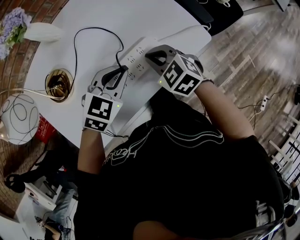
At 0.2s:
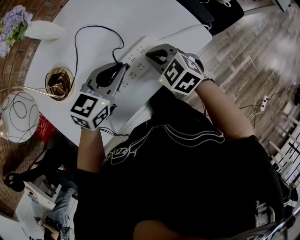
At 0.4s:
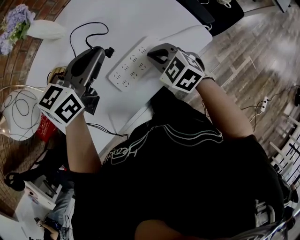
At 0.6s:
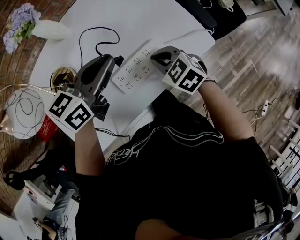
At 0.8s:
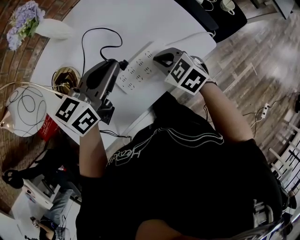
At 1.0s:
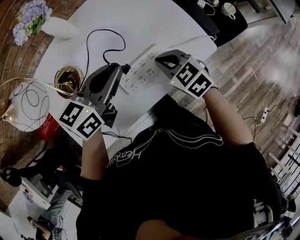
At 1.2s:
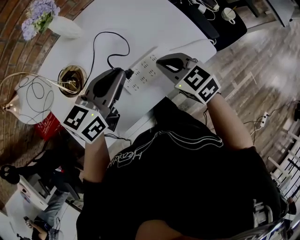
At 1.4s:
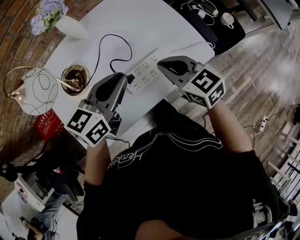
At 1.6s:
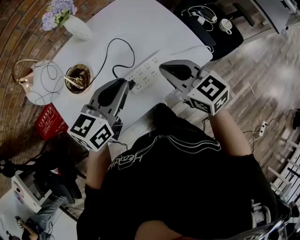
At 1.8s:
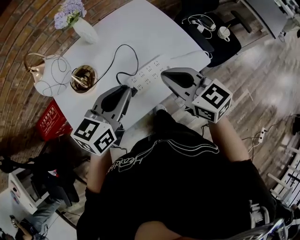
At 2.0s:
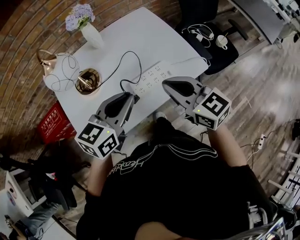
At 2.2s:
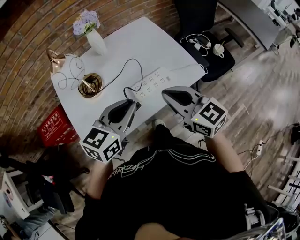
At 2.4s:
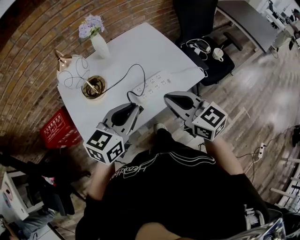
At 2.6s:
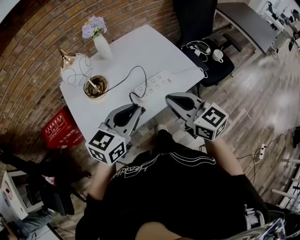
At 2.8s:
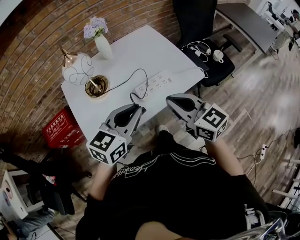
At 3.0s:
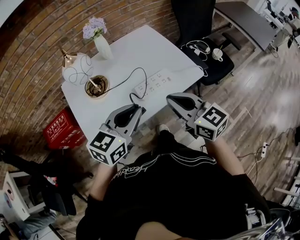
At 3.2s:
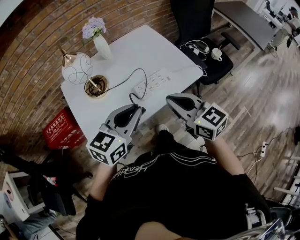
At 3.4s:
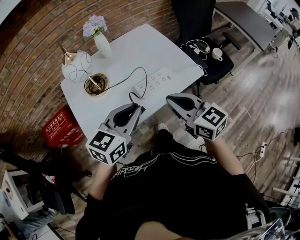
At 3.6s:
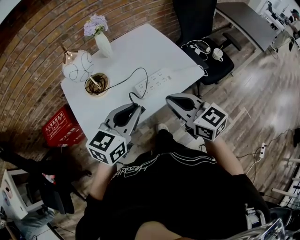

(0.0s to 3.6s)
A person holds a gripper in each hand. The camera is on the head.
0.0s - 1.8s: The right gripper heads upward, covering approximately 15 cm, and changes its angle by about 30 degrees; the left gripper heads upward and backward, covering roughly 15 cm, and turns by approximately 40 degrees.
1.8s - 3.6s: The grippers both shift backward by about 10 cm.

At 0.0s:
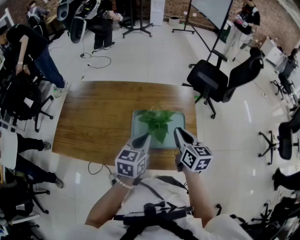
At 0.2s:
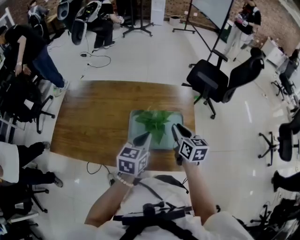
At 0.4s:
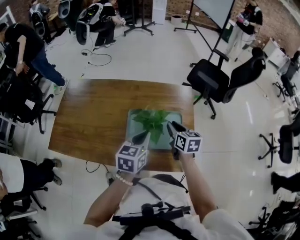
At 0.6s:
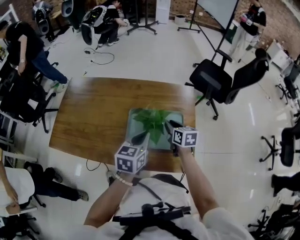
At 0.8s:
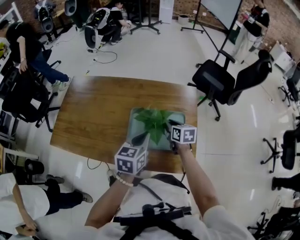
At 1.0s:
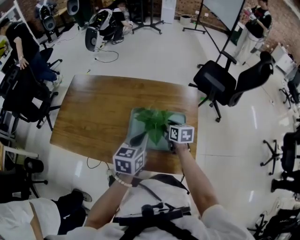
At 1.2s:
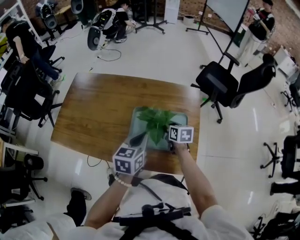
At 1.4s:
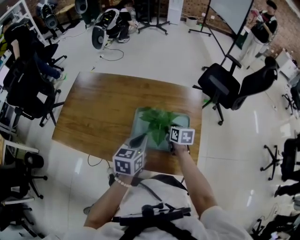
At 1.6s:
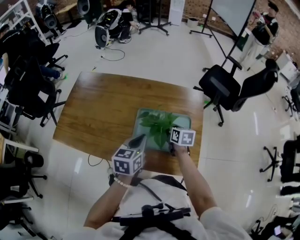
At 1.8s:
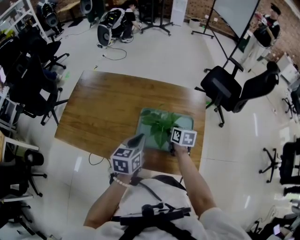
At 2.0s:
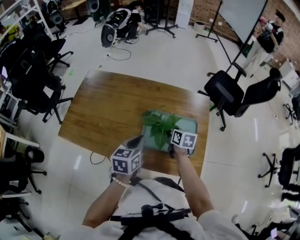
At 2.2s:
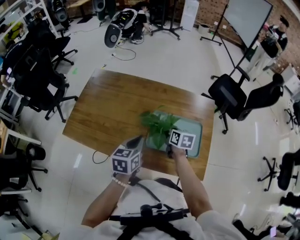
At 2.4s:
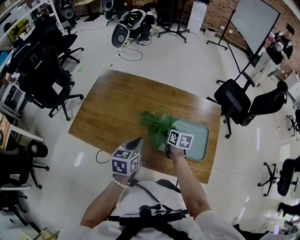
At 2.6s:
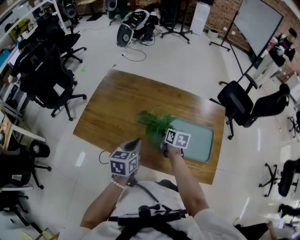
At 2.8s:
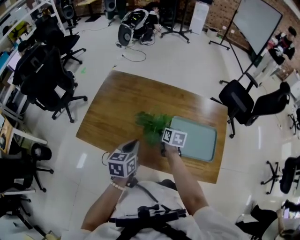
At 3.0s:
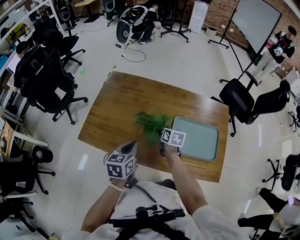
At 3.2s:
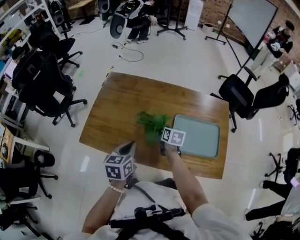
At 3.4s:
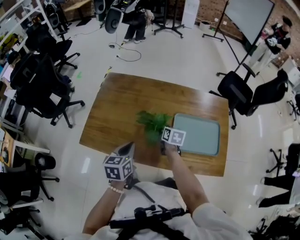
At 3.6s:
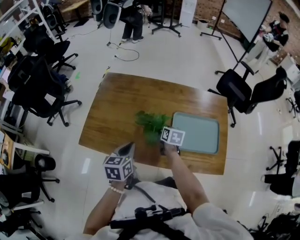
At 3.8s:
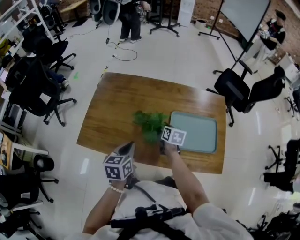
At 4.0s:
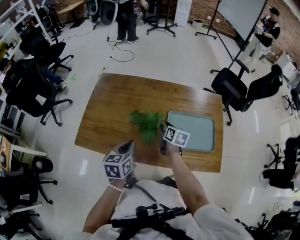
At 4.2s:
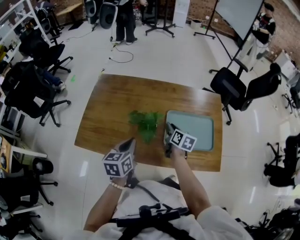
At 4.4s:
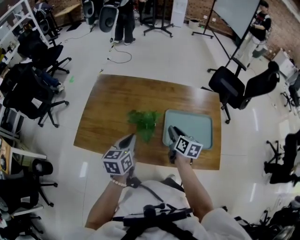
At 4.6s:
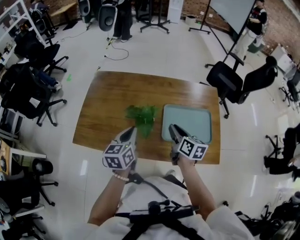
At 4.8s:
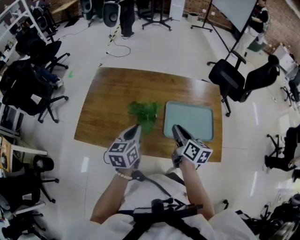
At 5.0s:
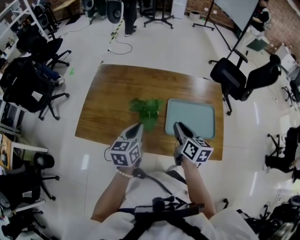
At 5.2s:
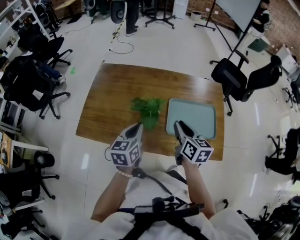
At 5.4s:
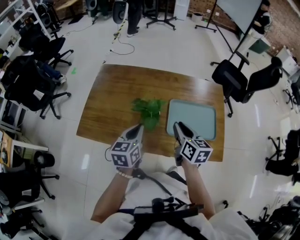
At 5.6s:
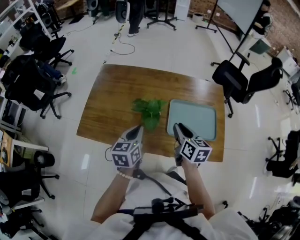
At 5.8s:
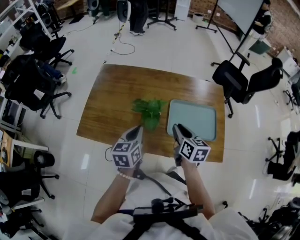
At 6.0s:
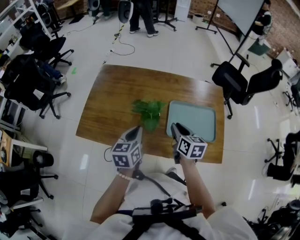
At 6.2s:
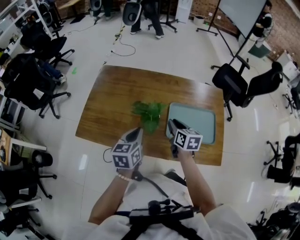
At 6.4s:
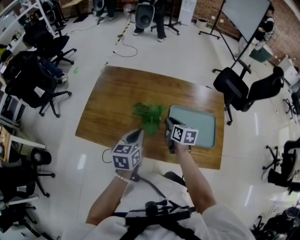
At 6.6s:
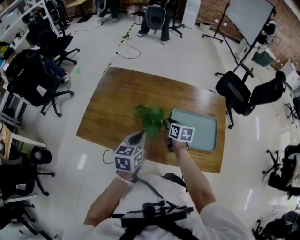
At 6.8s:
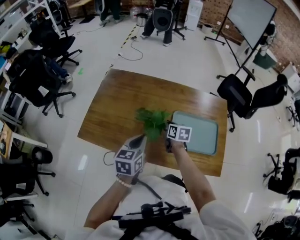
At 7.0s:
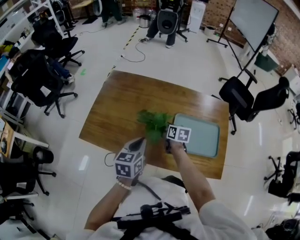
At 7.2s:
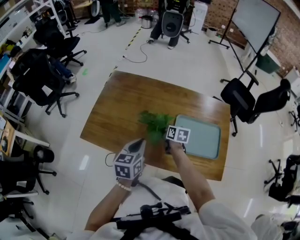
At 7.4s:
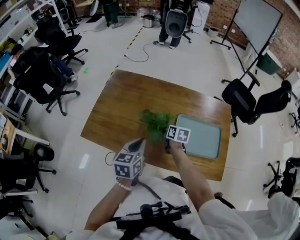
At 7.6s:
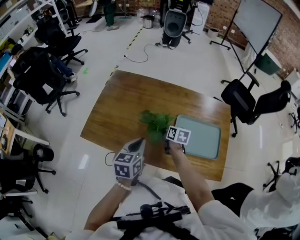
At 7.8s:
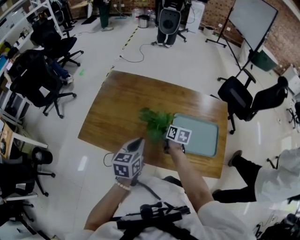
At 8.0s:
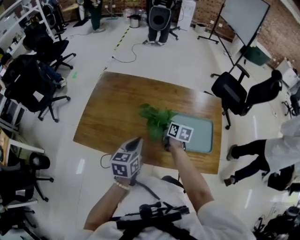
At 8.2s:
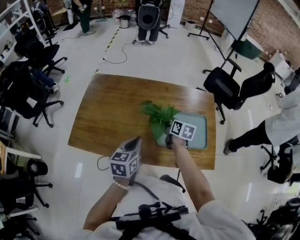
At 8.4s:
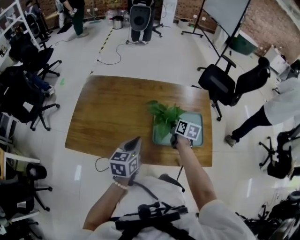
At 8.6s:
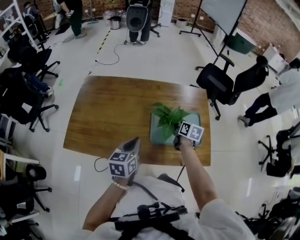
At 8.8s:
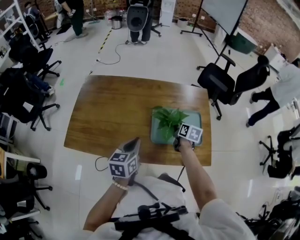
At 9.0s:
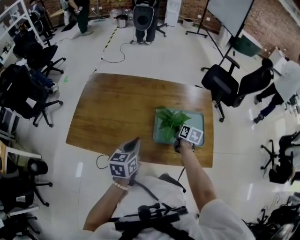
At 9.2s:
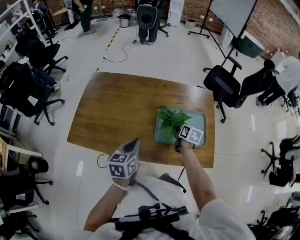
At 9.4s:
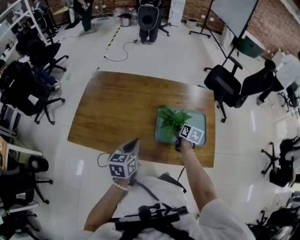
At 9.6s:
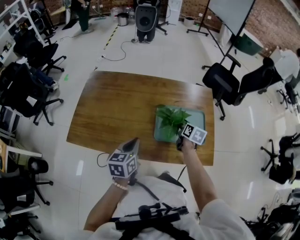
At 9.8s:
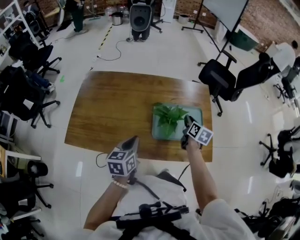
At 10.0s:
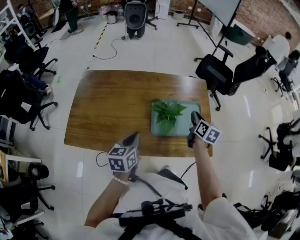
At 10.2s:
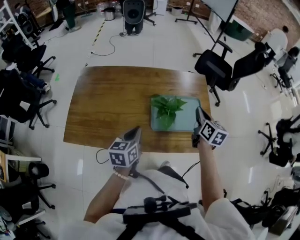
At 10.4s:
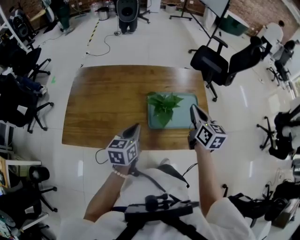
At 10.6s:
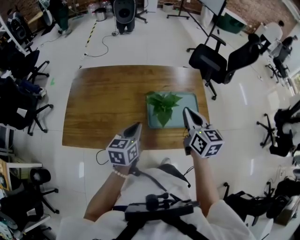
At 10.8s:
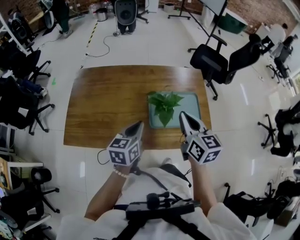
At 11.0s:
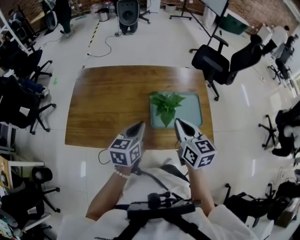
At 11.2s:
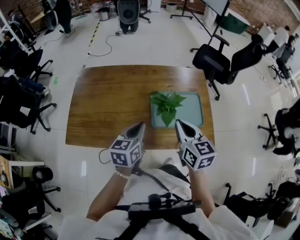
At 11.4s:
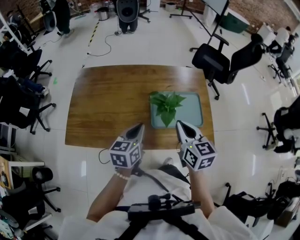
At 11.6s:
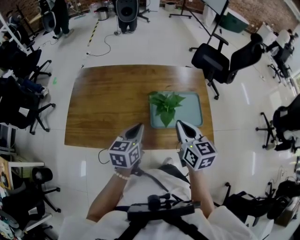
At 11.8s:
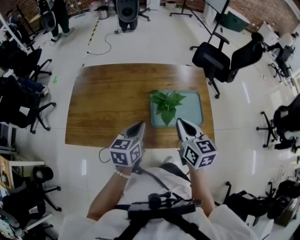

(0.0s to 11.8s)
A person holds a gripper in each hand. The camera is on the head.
0.0s - 1.4s: The right gripper goes approximately 20 cm downward and forward, and turns by approximately 20 degrees.
1.4s - 3.0s: Both grippers travel together to the left, about 25 cm.
3.0s - 4.4s: The right gripper heads to the right, upward and backward, covering roughly 15 cm, and opens up.
6.0s - 7.4s: The right gripper heads downward, forward and to the left, covering about 15 cm.
7.4s - 8.8s: The left gripper travels to the right by about 10 cm, while the right gripper goes approximately 20 cm to the right.
8.8s - 10.4s: The right gripper travels upward by approximately 20 cm, and rotates some 30 degrees.
10.4s - 11.8s: The right gripper goes approximately 10 cm to the left and backward.

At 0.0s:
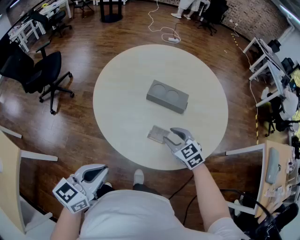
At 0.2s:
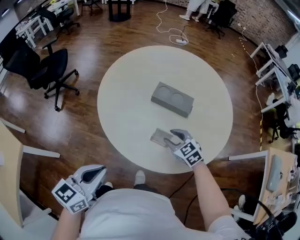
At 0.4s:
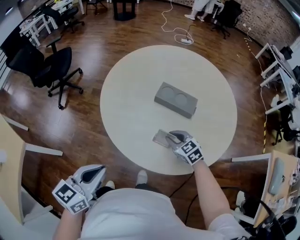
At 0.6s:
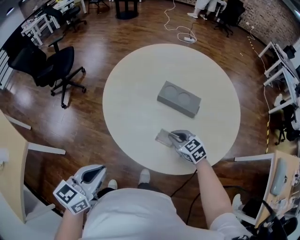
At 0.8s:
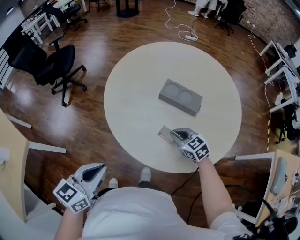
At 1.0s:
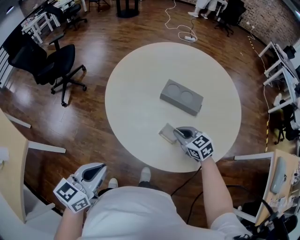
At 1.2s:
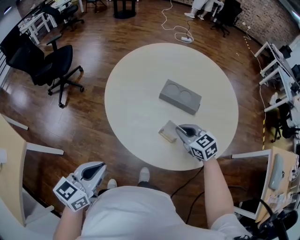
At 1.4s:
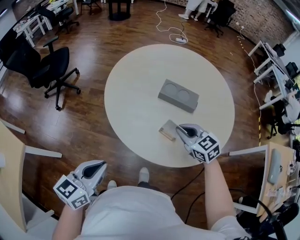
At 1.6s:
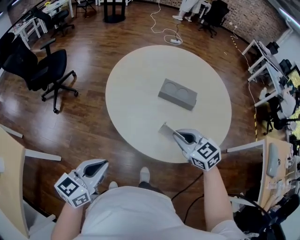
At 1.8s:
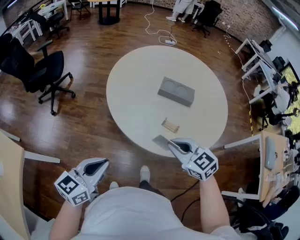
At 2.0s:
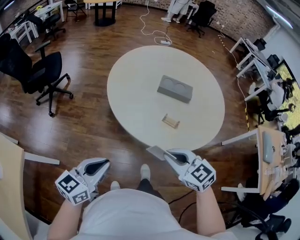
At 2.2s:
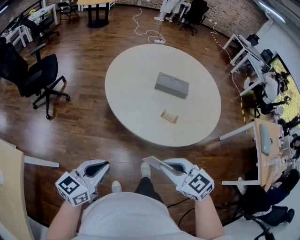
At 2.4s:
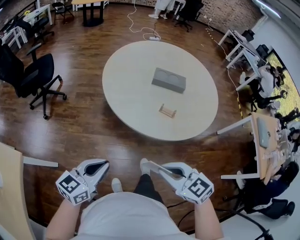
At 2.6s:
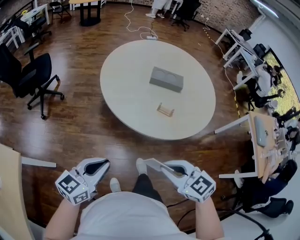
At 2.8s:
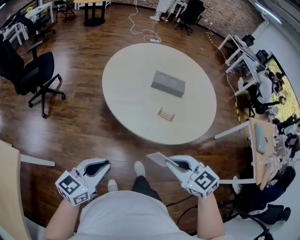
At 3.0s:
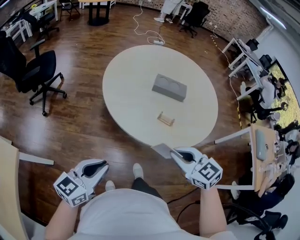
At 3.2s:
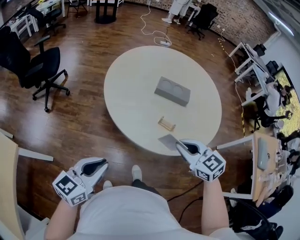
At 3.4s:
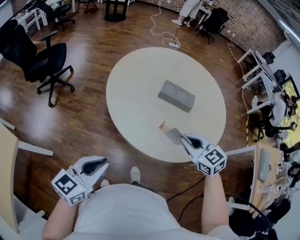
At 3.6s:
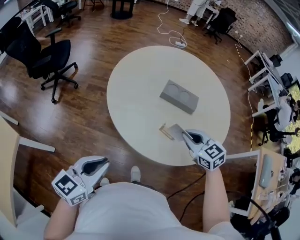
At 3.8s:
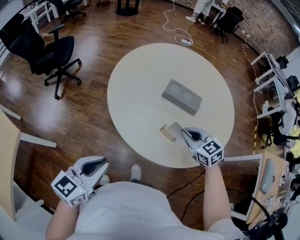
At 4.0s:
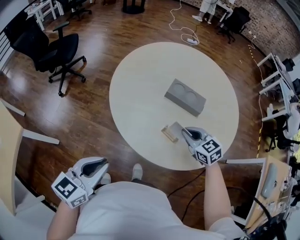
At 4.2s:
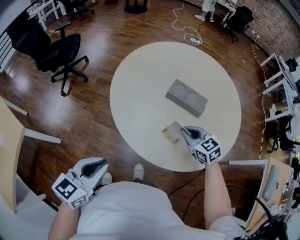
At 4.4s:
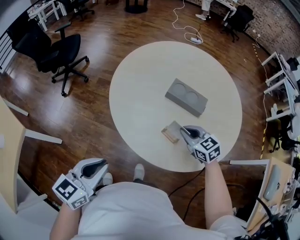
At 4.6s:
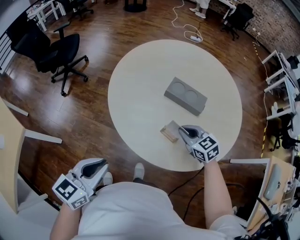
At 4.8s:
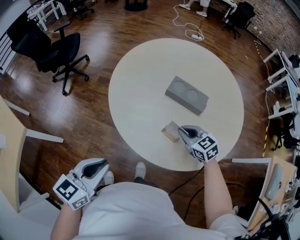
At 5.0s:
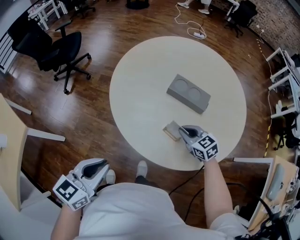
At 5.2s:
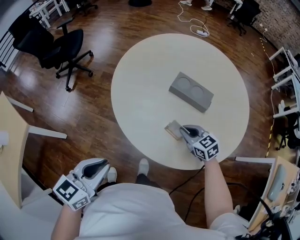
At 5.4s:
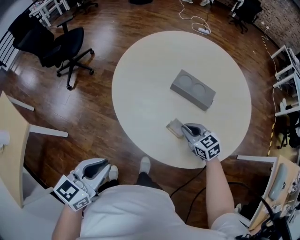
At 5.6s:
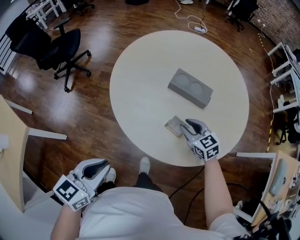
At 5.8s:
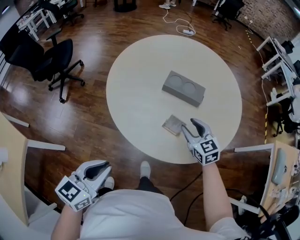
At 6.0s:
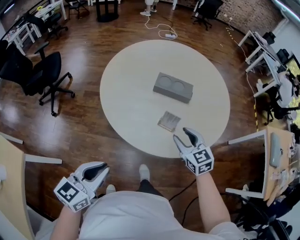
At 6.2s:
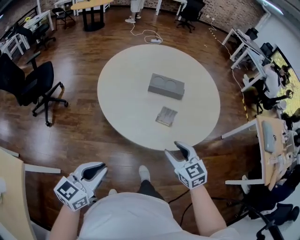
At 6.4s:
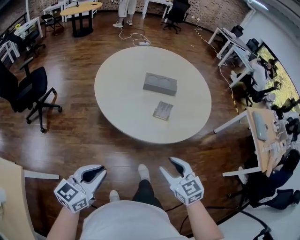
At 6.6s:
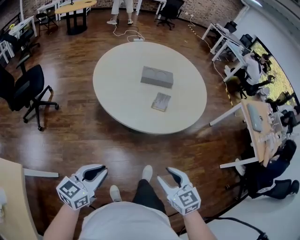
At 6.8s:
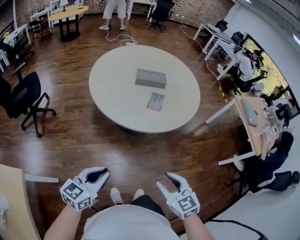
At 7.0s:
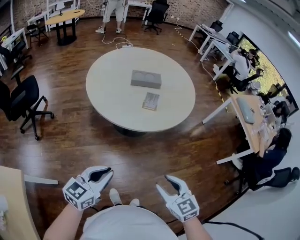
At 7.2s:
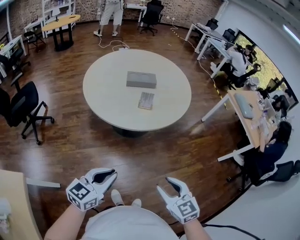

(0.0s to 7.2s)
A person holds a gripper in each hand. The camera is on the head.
0.0s - 1.4s: The left gripper heads to the left, covering approximately 5 cm. The right gripper goes about 5 cm upward, and closes up.
1.4s - 2.8s: The right gripper travels backward and to the left by some 30 cm; the left gripper moves backward and to the left, about 10 cm.
2.8s - 4.4s: The left gripper moves to the right and forward, some 15 cm, and turns by about 20 degrees, while the right gripper shifts some 35 cm forward, to the right and downward.
4.4s - 5.8s: The right gripper opens its fingers.
5.8s - 7.2s: The left gripper ends up about 20 cm from where it was, and rotates approximately 30 degrees. The right gripper shifts by roughly 50 cm, and turns by approximately 20 degrees.

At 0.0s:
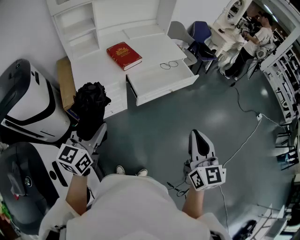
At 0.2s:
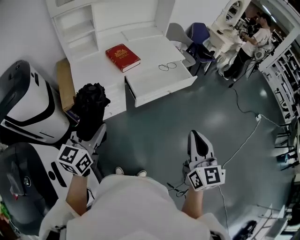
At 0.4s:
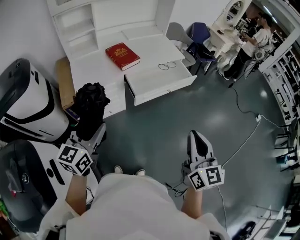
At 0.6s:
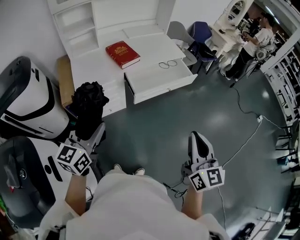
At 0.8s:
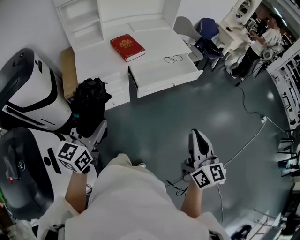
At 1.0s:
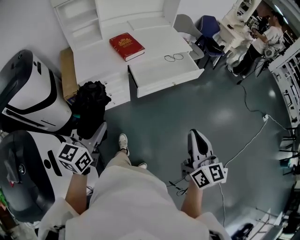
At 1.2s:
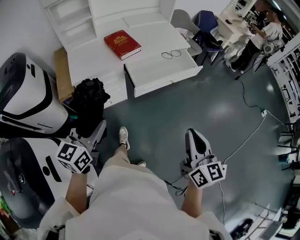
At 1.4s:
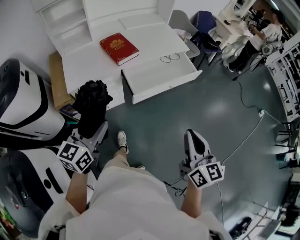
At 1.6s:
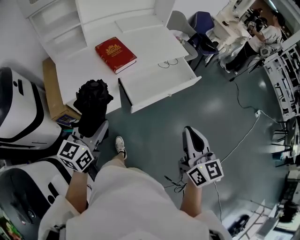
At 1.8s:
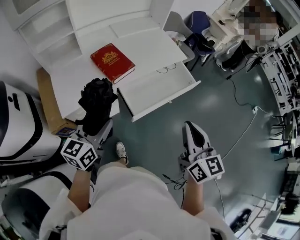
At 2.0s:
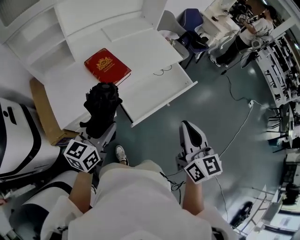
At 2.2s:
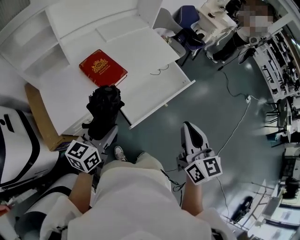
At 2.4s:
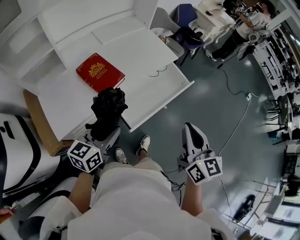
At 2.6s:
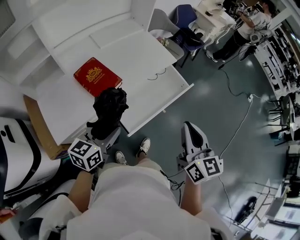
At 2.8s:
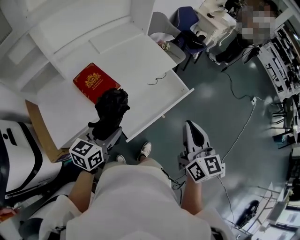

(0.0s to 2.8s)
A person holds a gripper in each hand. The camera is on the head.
0.0s - 1.4s: Both grippers travel together forward and downward, some 10 cm.
1.4s - 2.8s: The grippers both shift forward by approximately 30 cm. The left gripper turns by some 20 degrees.
